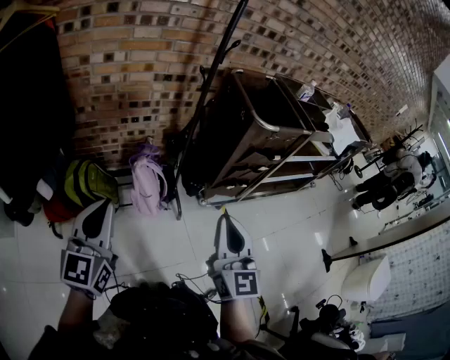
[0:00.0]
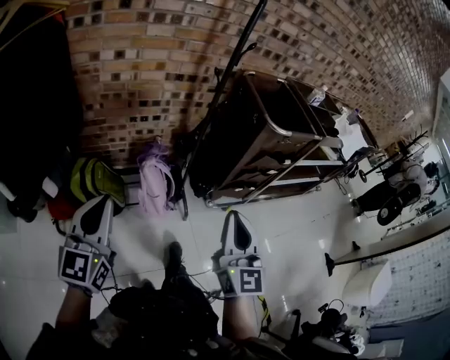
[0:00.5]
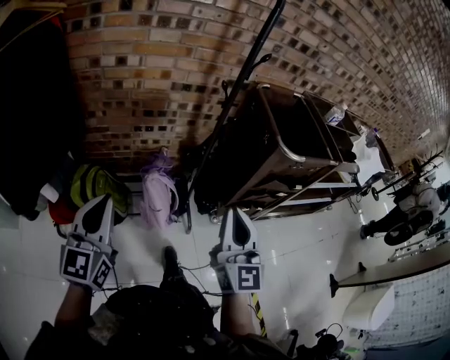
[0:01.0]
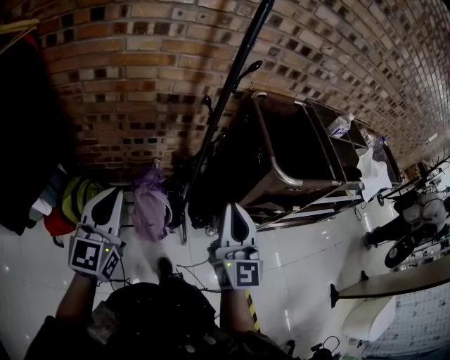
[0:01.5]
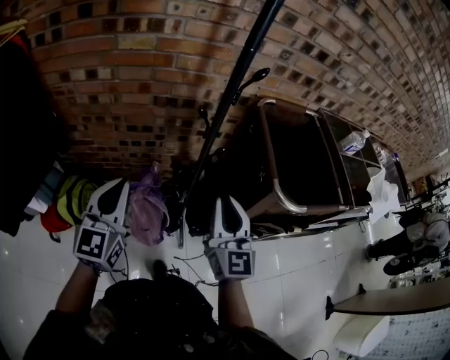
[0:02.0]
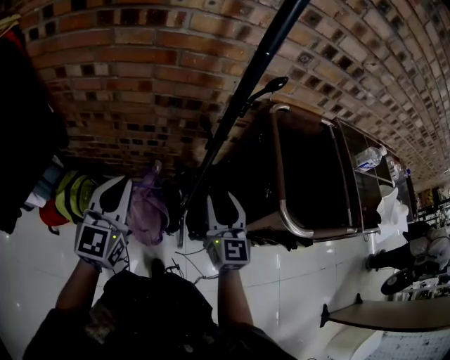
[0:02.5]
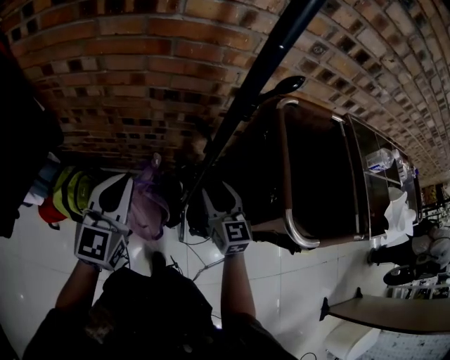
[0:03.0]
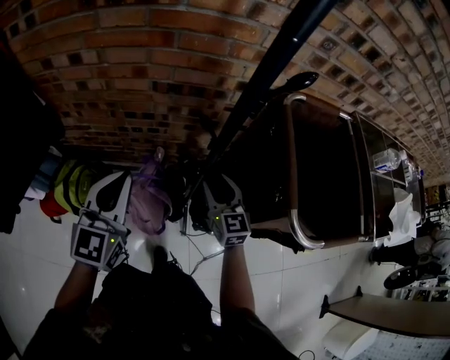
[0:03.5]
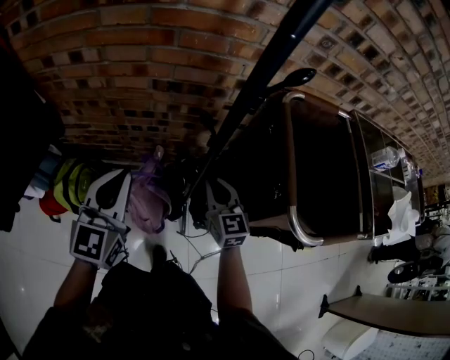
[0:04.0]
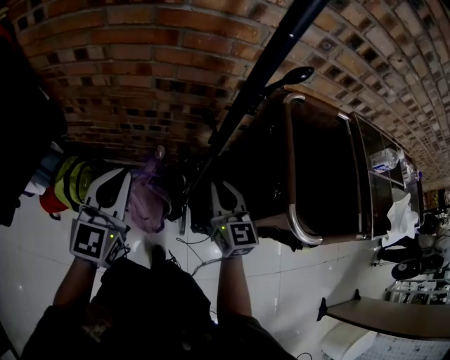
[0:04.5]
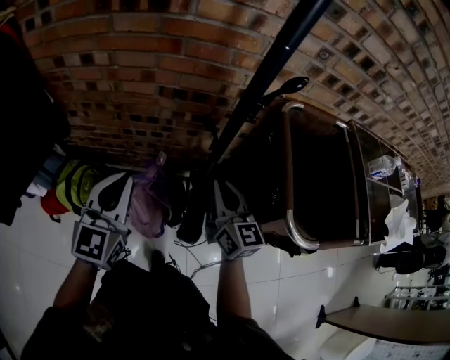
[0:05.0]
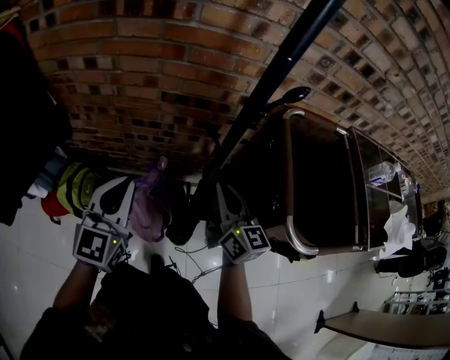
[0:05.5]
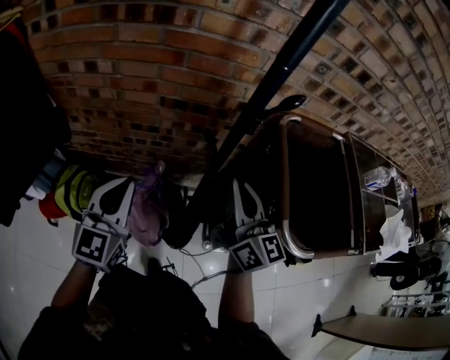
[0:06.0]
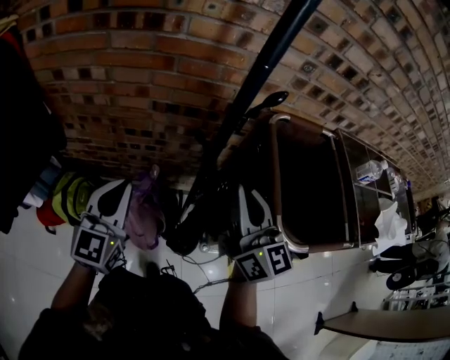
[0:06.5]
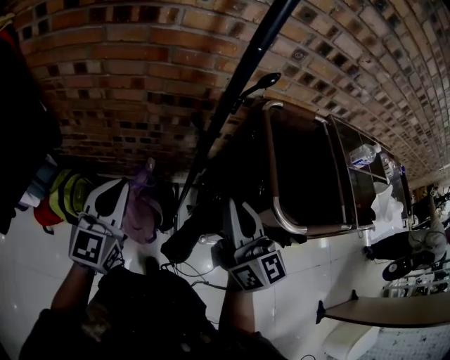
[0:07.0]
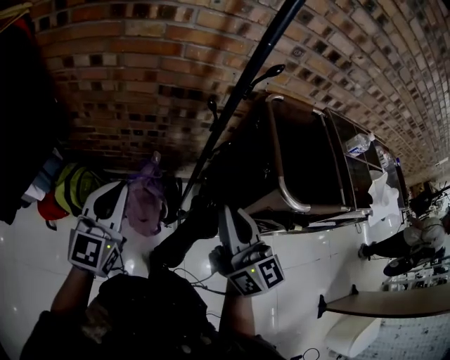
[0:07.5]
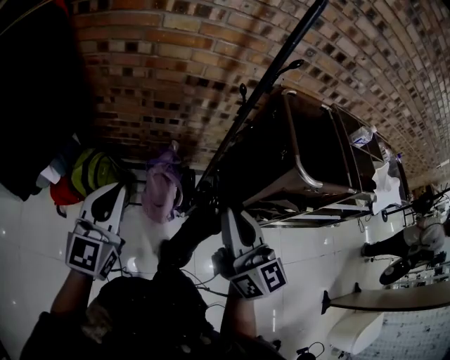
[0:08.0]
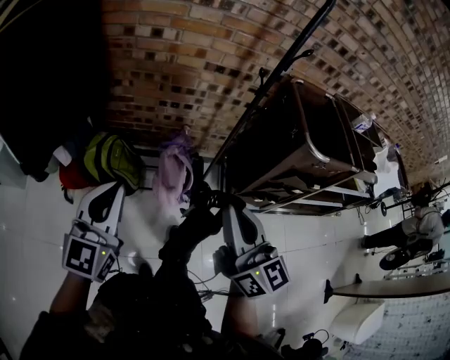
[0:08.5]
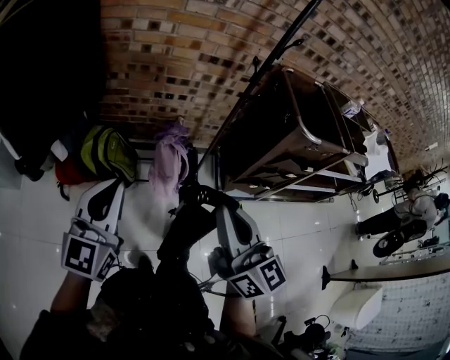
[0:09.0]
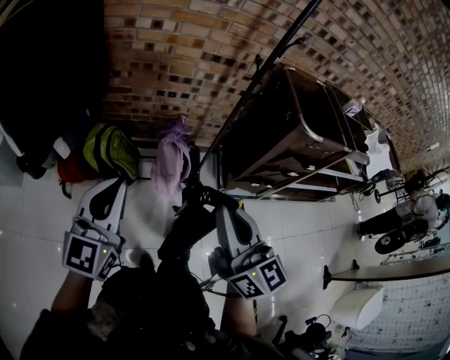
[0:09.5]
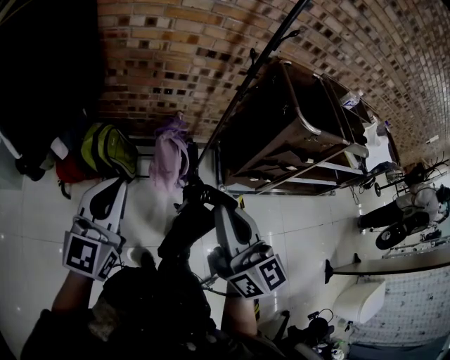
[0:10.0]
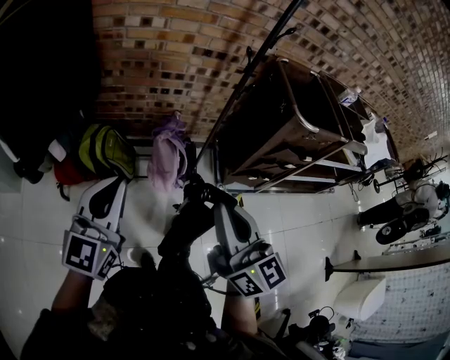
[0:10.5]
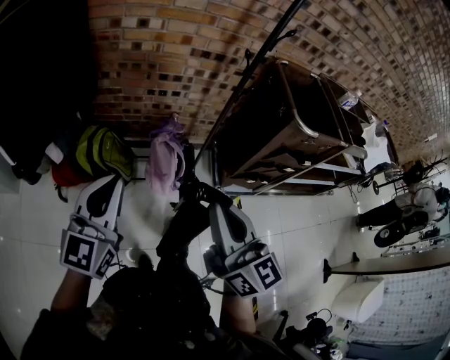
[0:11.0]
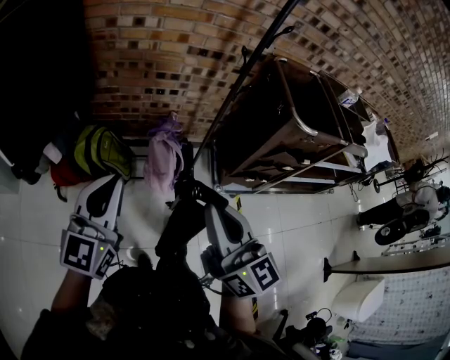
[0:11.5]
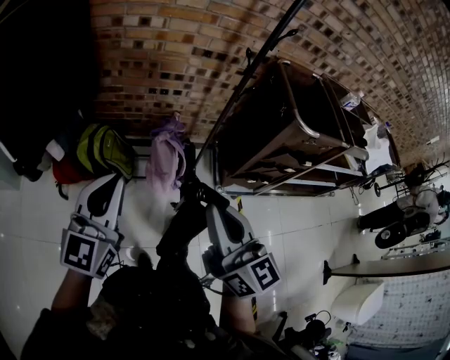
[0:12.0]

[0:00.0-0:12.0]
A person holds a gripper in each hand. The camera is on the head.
0:00.0 to 0:02.0: The grippers both shift forward by roughly 40 cm.
0:02.0 to 0:04.0: The left gripper is displaced forward by some 10 cm. The right gripper is displaced downward and forward by some 25 cm, swivels some 20 degrees, and opens, then closes once more.
0:04.0 to 0:06.0: The right gripper is displaced upward by roughly 20 cm, and changes its angle by about 30 degrees.
0:06.0 to 0:08.0: Both grippers move backward and to the left, some 30 cm.
0:08.0 to 0:10.0: The grippers both shift backward and to the left by approximately 20 cm.
0:10.0 to 0:12.0: There are only small adjustments of the grippers.

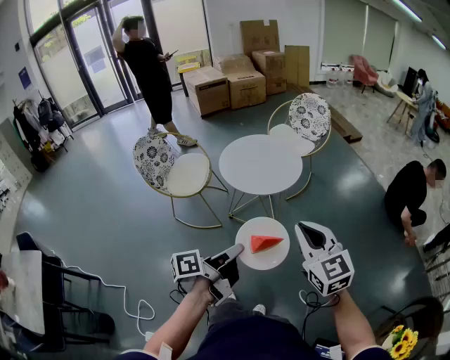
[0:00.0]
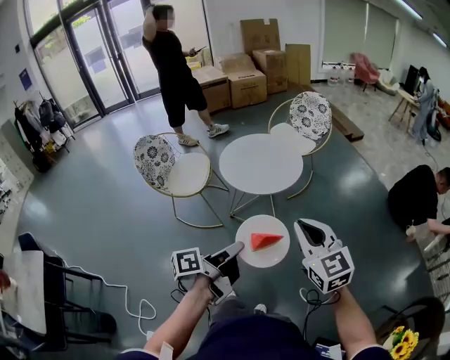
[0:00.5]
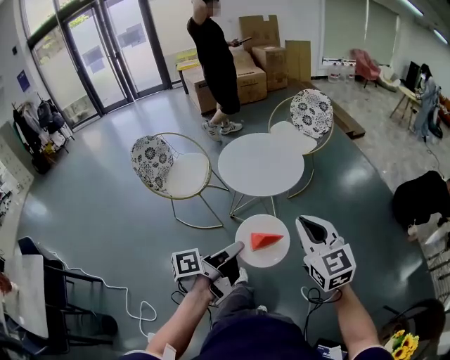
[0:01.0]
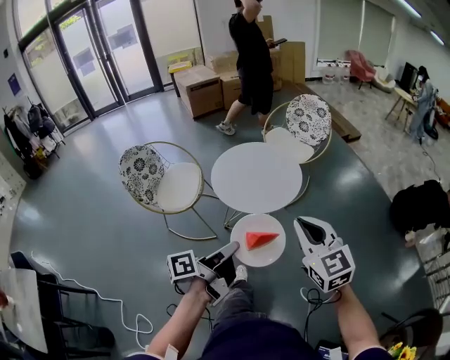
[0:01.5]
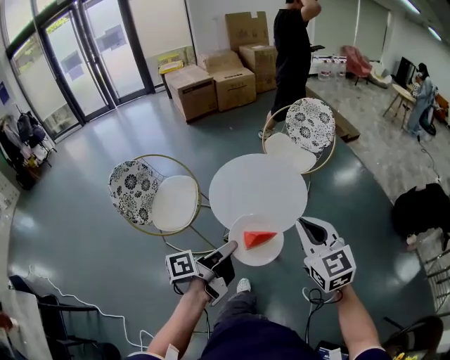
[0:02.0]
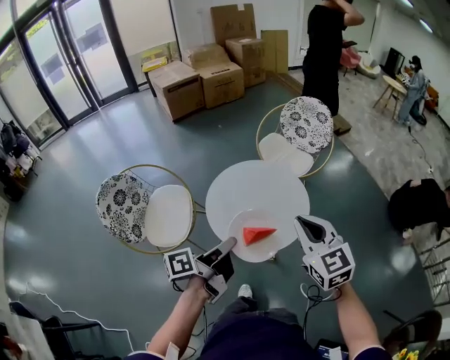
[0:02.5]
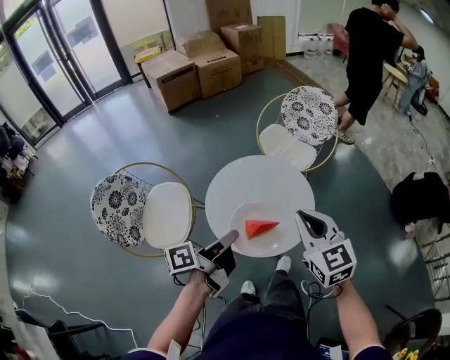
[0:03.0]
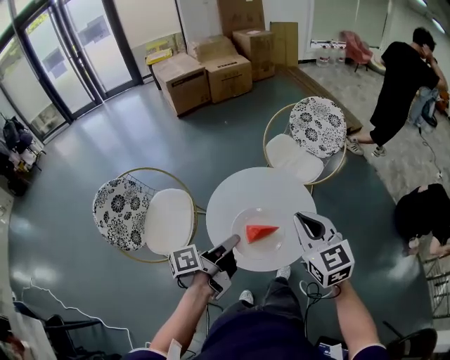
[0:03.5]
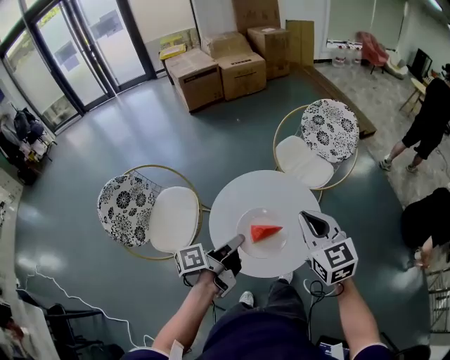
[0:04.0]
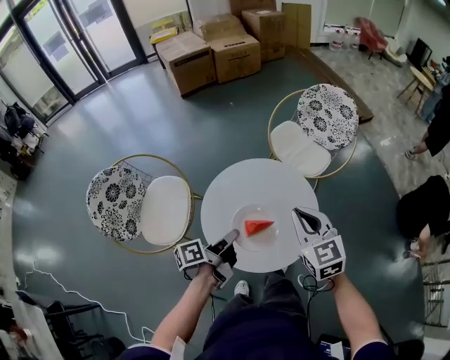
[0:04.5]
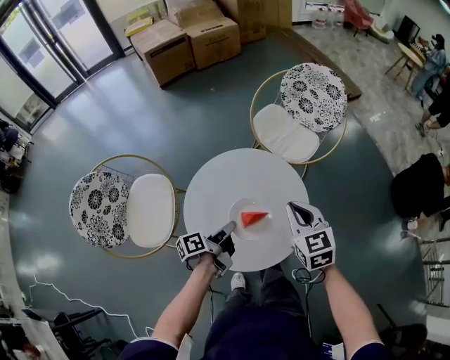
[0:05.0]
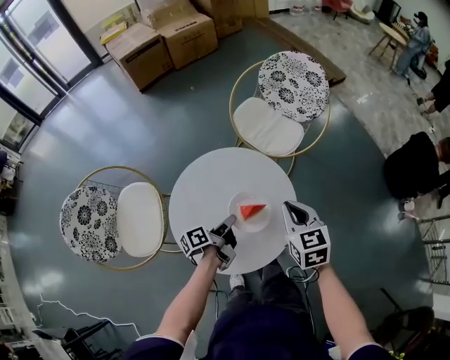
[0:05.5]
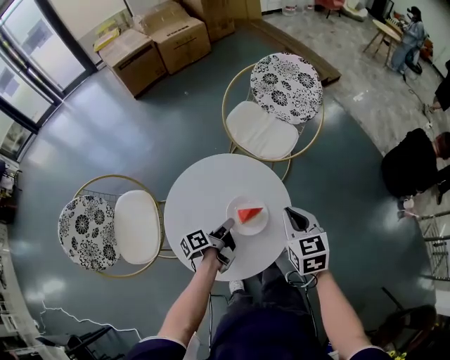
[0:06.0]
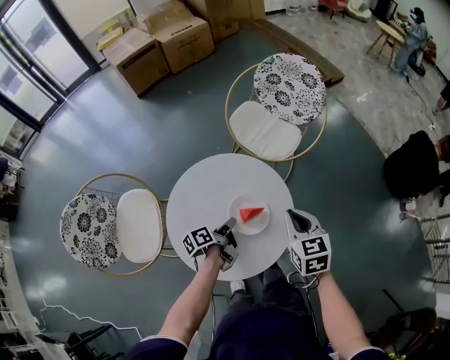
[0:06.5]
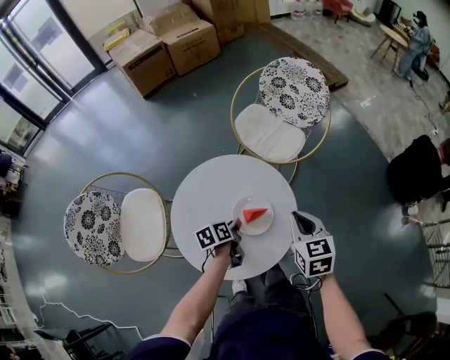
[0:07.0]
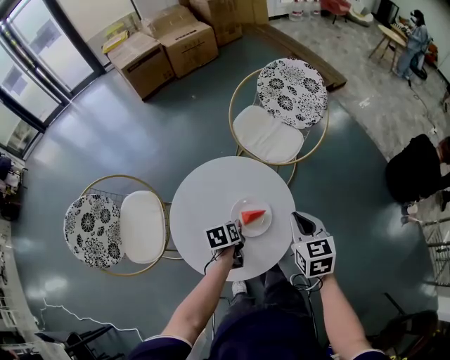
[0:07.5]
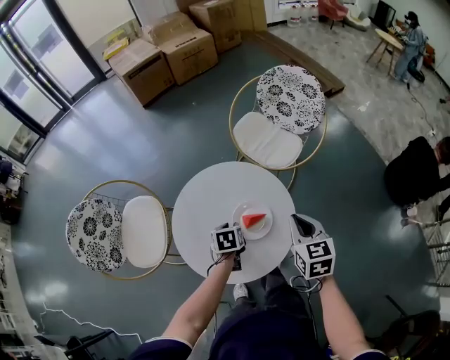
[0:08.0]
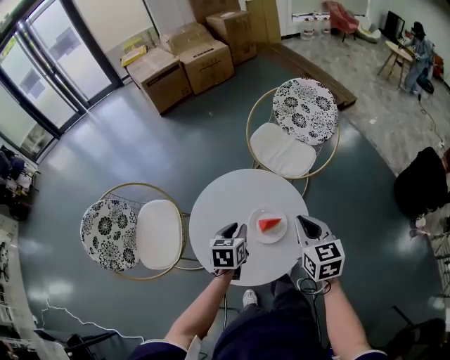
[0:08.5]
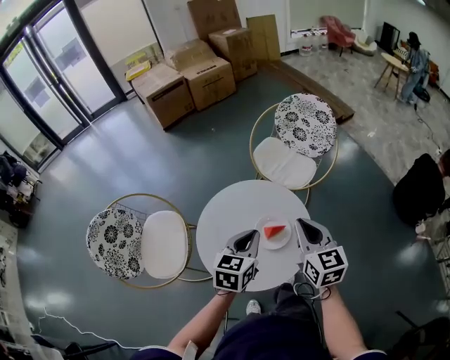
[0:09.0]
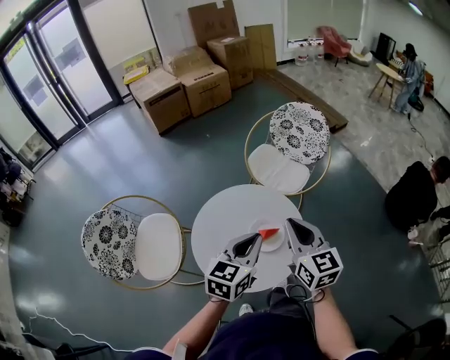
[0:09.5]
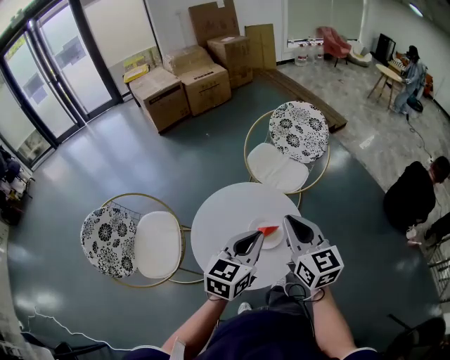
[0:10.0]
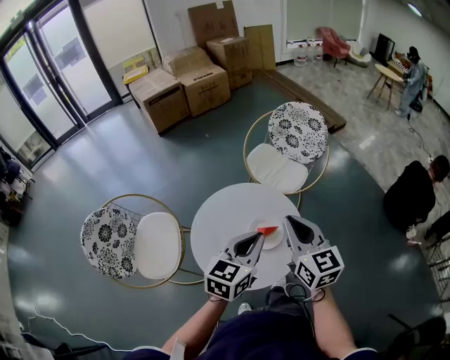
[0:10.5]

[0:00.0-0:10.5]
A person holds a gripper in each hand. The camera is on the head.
0:00.0 to 0:02.0: Both grippers travel together forward, roughly 25 cm.
0:02.0 to 0:04.0: Both grippers travel together forward, some 20 cm.
0:04.0 to 0:06.5: The left gripper heads downward and forward, covering some 25 cm, and swivels approximately 20 degrees; the right gripper shifts roughly 20 cm downward and to the right, and swivels approximately 30 degrees.
0:06.5 to 0:08.5: The left gripper goes about 10 cm upward, and rolls clockwise, seen from behind, by about 60 degrees. Meanwhile the right gripper moves upward, some 5 cm.
0:08.5 to 0:10.5: The right gripper shifts about 10 cm upward; the left gripper heads upward, covering roughly 20 cm, rotates roughly 30 degrees, and closes its fingers.

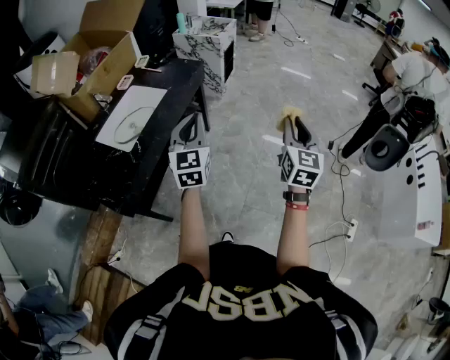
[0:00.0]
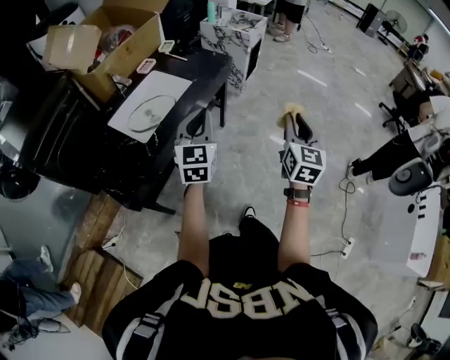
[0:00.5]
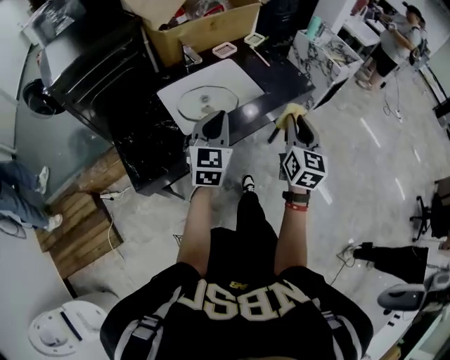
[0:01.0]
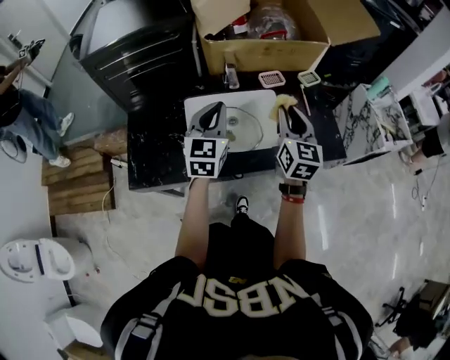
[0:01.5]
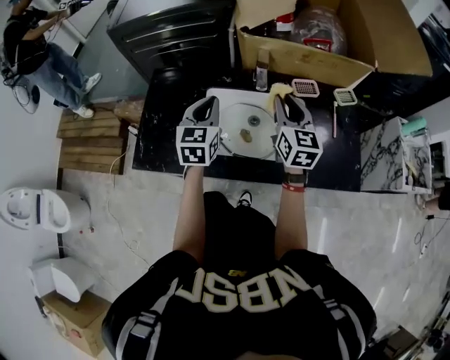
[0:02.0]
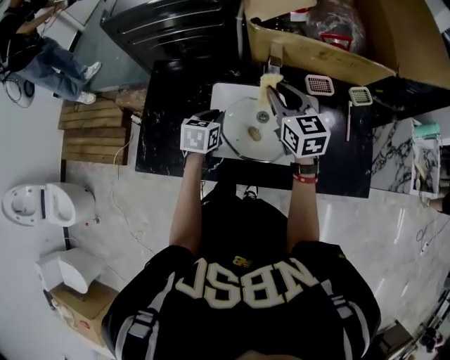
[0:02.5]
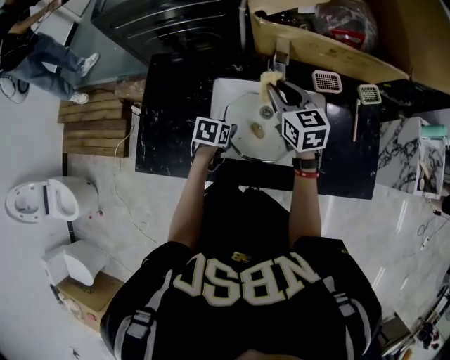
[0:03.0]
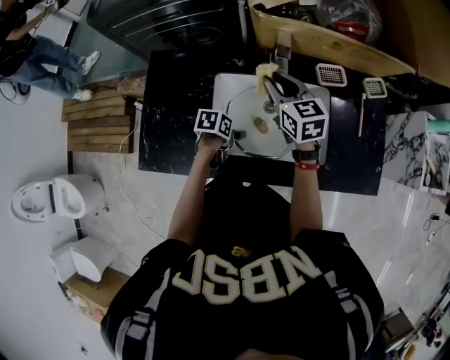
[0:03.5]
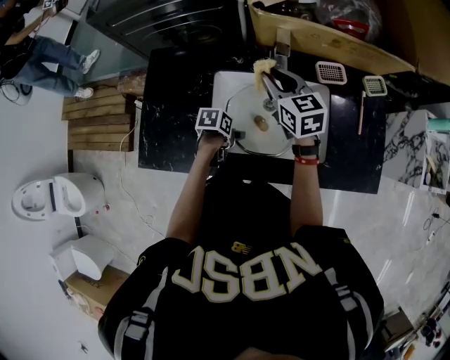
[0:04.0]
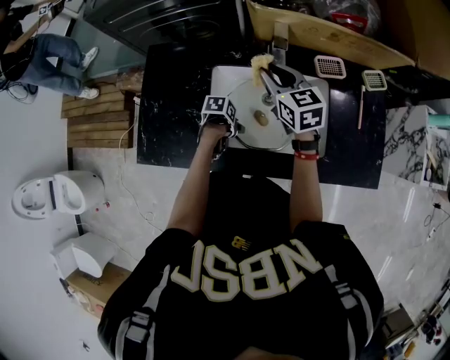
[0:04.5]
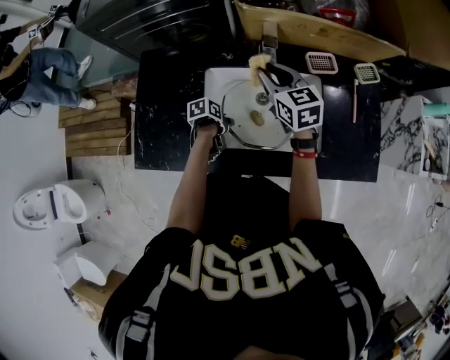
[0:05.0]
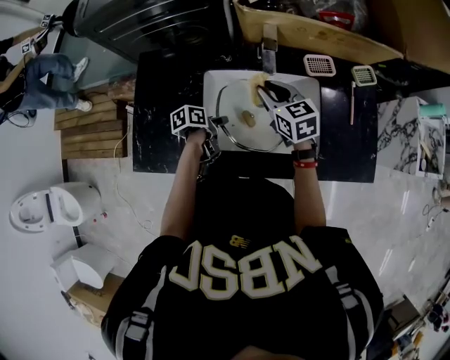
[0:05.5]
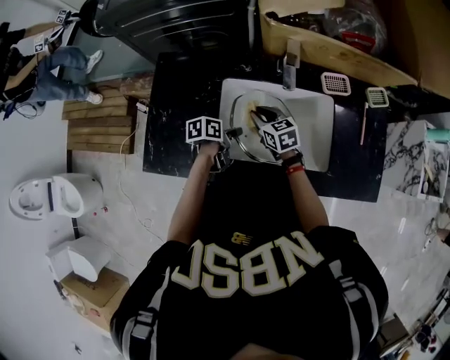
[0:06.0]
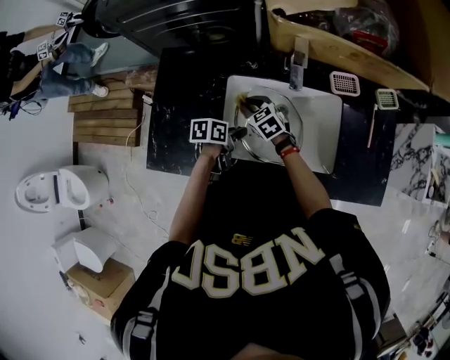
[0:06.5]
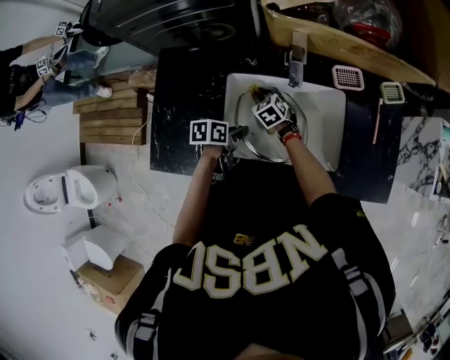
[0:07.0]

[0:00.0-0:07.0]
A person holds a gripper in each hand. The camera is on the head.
0:00.0 to 0:02.0: The right gripper ends up approximately 80 cm from where it was, and changes its angle by some 90 degrees.
0:02.0 to 0:03.5: The right gripper moves about 15 cm, and rotates roughly 20 degrees.
0:05.0 to 0:07.0: The right gripper moves downward, some 25 cm, and changes its angle by some 30 degrees.
